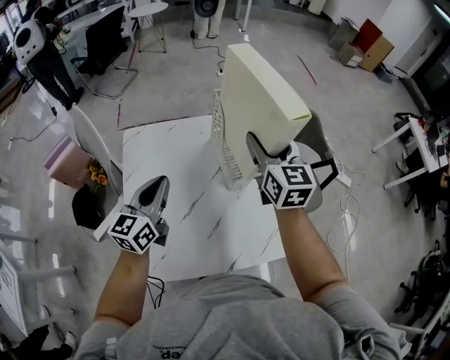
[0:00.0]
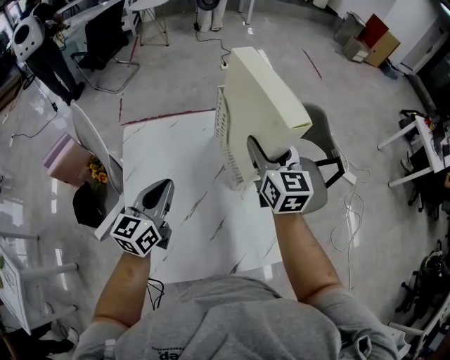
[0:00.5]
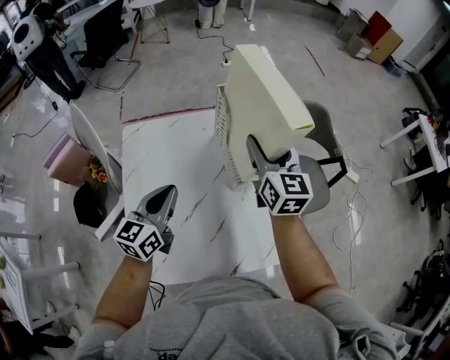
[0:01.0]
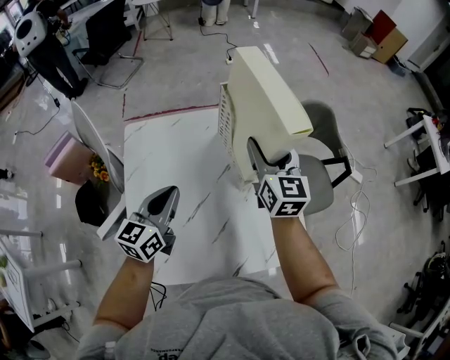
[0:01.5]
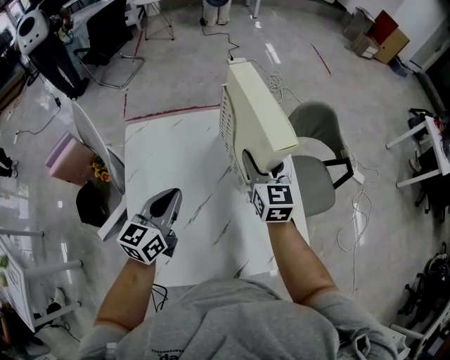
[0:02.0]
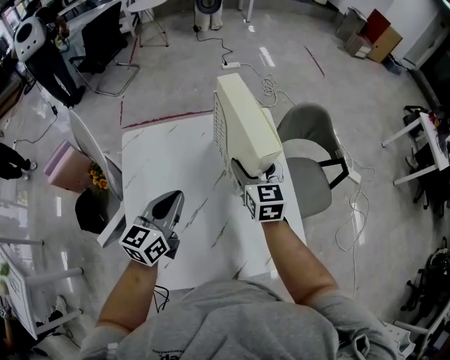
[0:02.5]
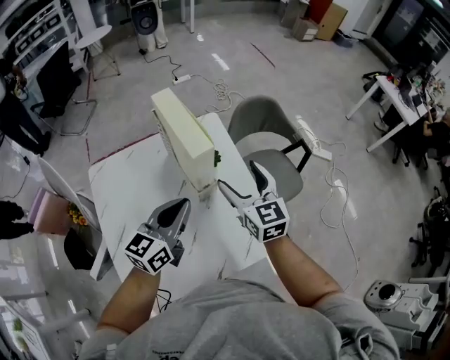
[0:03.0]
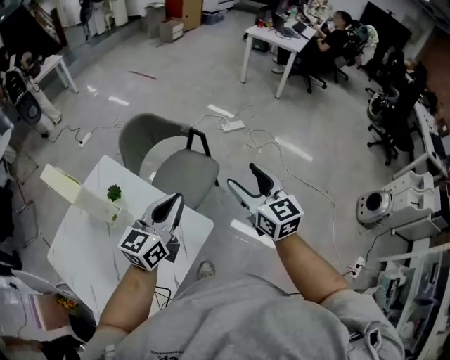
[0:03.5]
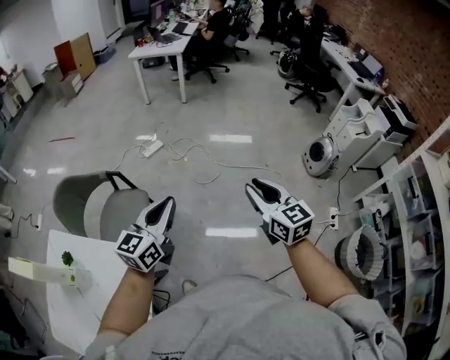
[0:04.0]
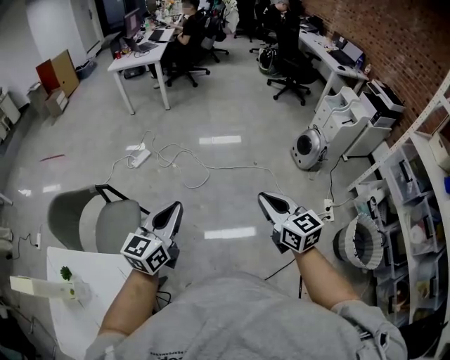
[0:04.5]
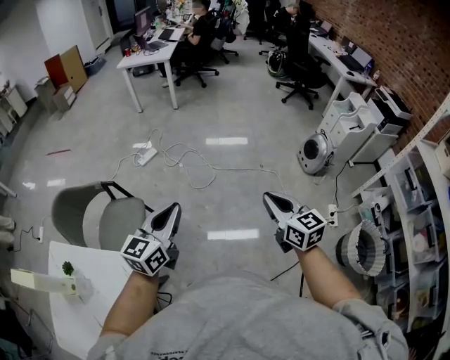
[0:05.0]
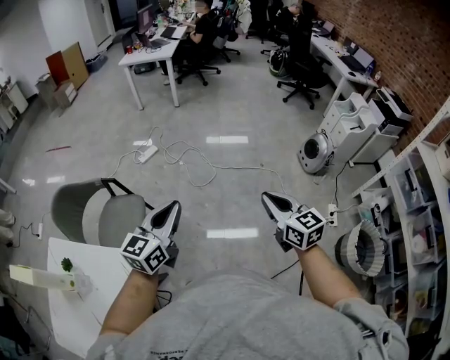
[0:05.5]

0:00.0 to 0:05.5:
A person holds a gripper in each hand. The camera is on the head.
0:00.0 to 0:02.0: The right gripper shifts about 10 cm downward. The left gripper heads downward, covering roughly 5 cm.
0:02.0 to 0:03.5: Both grippers are carried some 50 cm. The left gripper changes its angle by some 50 degrees. The right gripper changes its angle by some 30 degrees.
0:03.5 to 0:05.5: The left gripper shifts by about 40 cm, and changes its angle by some 30 degrees; the right gripper changes place by some 50 cm, changes its angle by some 30 degrees, and closes.

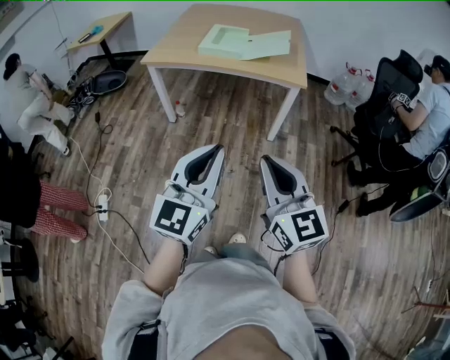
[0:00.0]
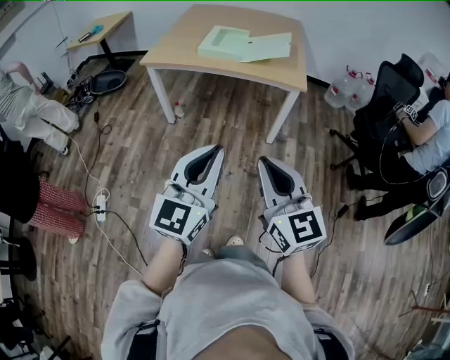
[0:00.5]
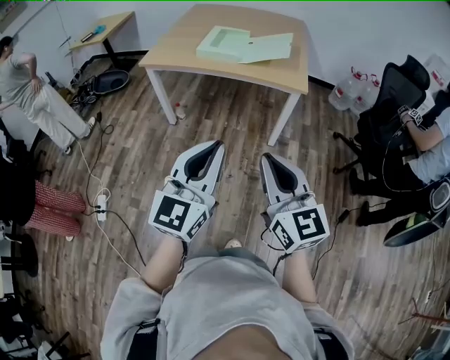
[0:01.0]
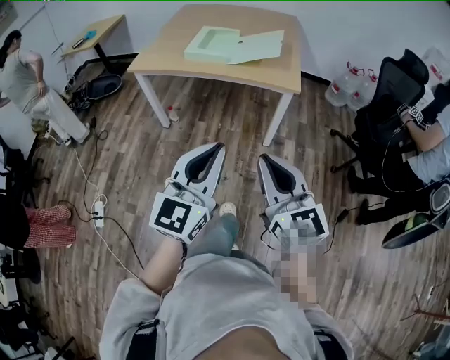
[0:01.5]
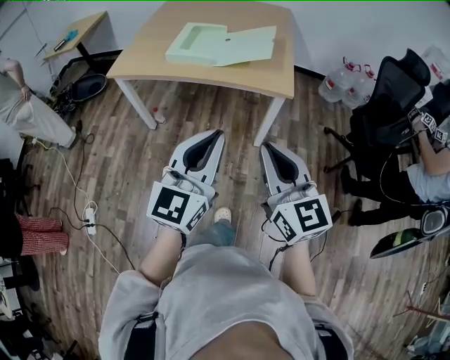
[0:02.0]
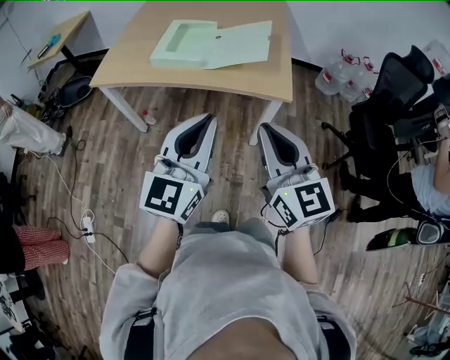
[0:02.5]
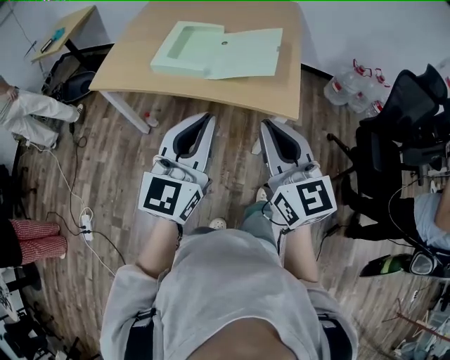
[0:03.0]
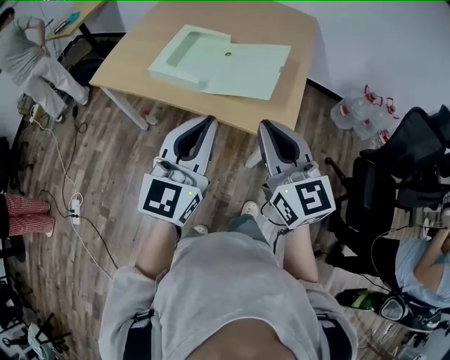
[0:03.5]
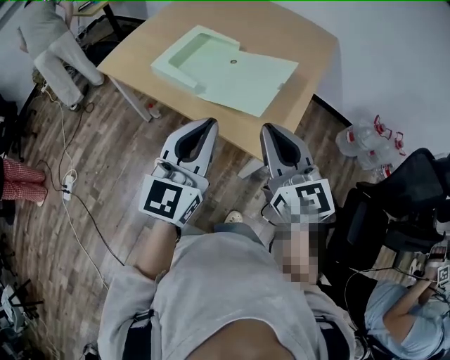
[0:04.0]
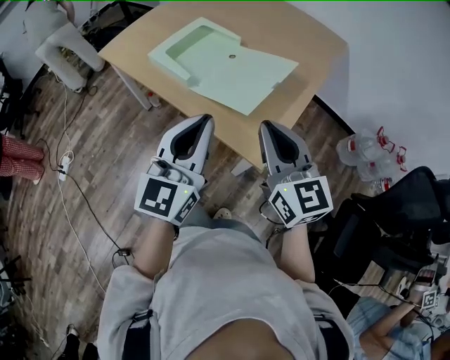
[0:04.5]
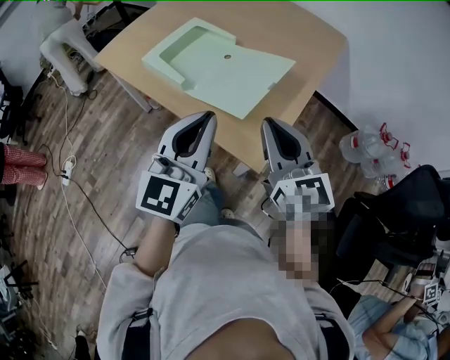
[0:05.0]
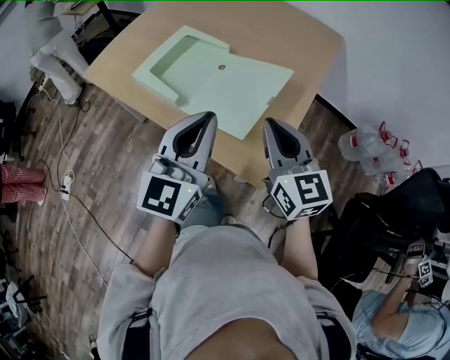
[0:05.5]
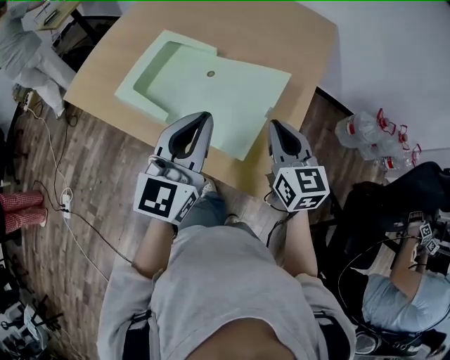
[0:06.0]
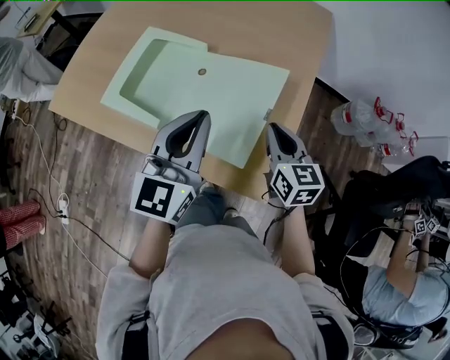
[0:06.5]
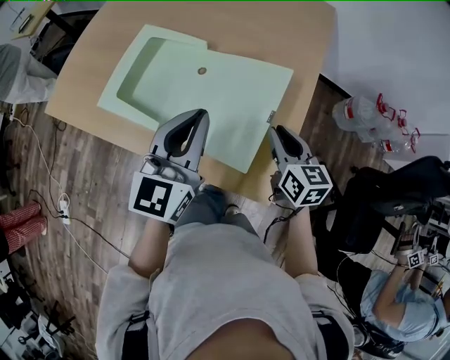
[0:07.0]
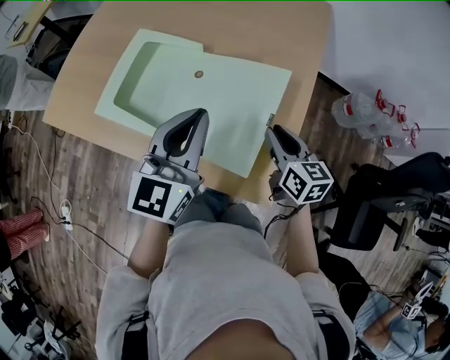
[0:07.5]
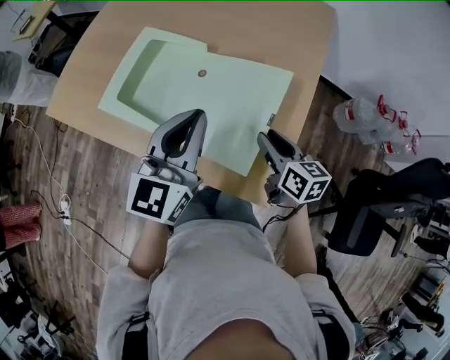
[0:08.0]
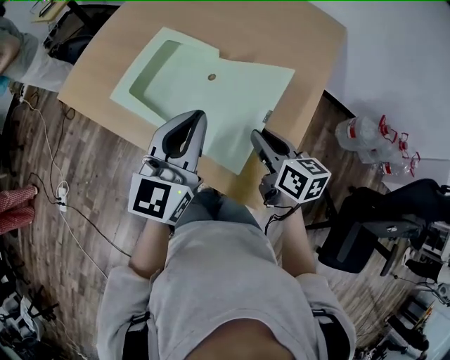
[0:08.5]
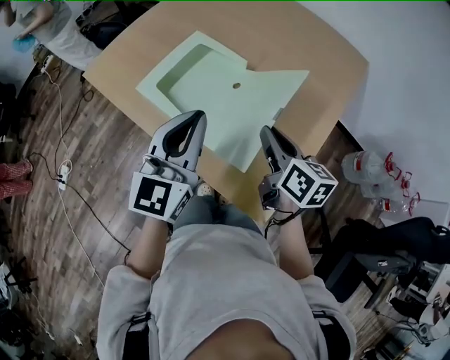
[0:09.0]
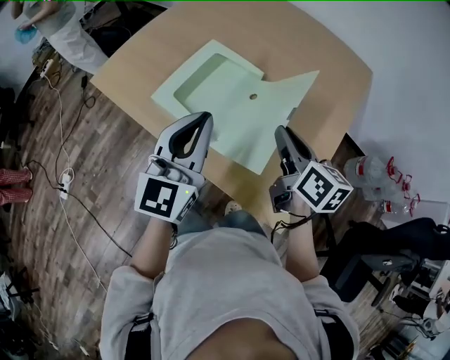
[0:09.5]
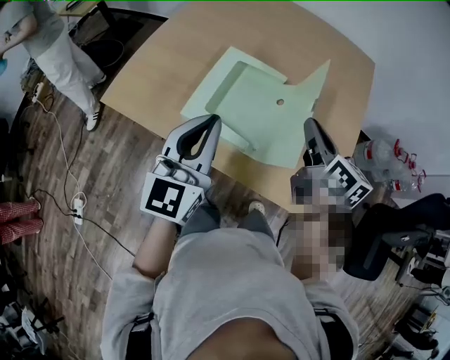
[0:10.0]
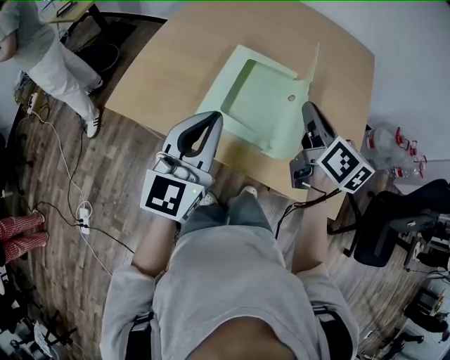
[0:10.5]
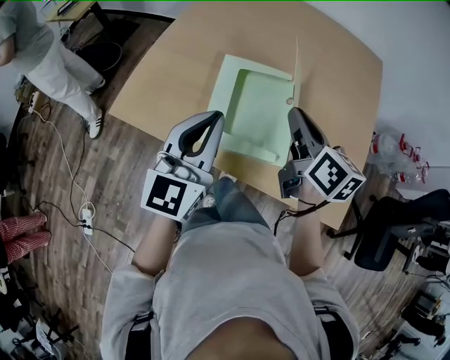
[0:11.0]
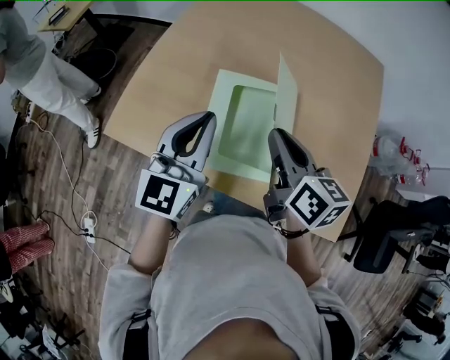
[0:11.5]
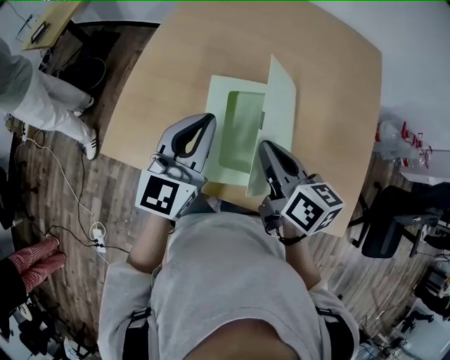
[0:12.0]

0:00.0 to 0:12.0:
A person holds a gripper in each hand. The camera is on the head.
0:00.0 to 0:02.0: The grippers both shift forward and to the right by some 25 cm.
0:02.0 to 0:04.0: The two grippers go some 35 cm forward and to the right. The right gripper swivels some 20 degrees, while the left gripper swivels about 20 degrees.
0:04.0 to 0:06.0: The left gripper travels forward by about 20 cm. The right gripper is displaced forward, downward and to the right by approximately 25 cm.
0:06.0 to 0:08.0: The right gripper goes approximately 10 cm downward, turns by roughly 30 degrees, and opens, while the left gripper heads forward, covering roughly 5 cm.
0:08.0 to 0:10.0: The left gripper shifts some 25 cm to the left. Meanwhile the right gripper goes roughly 25 cm to the left, upward and forward.
0:10.0 to 0:12.0: The right gripper travels to the left by roughly 20 cm. The left gripper goes approximately 20 cm forward and to the left.

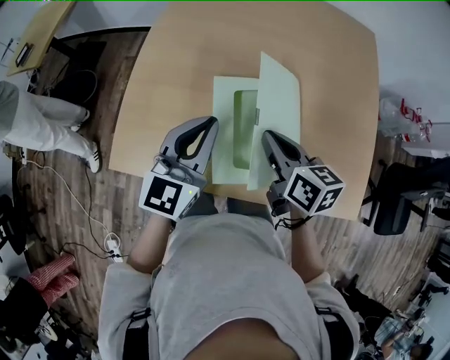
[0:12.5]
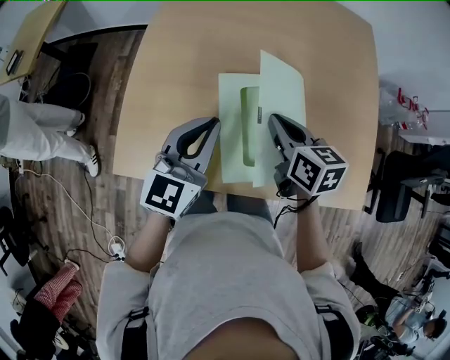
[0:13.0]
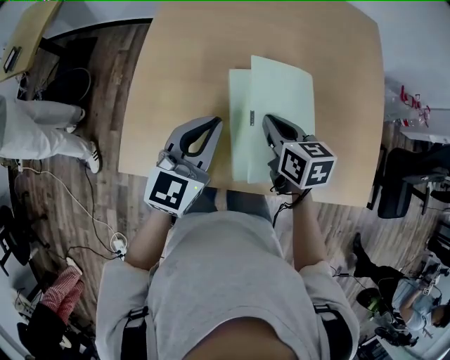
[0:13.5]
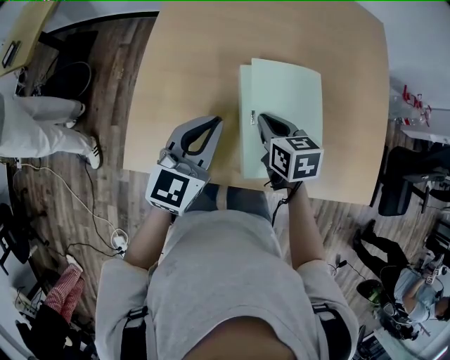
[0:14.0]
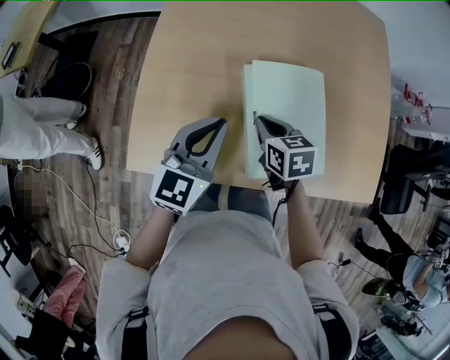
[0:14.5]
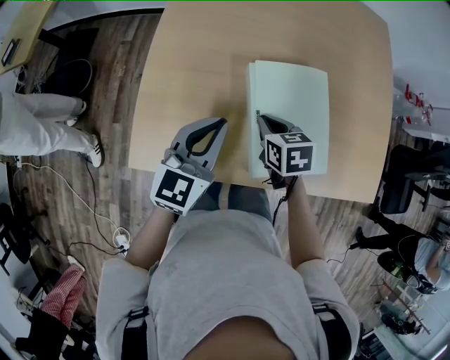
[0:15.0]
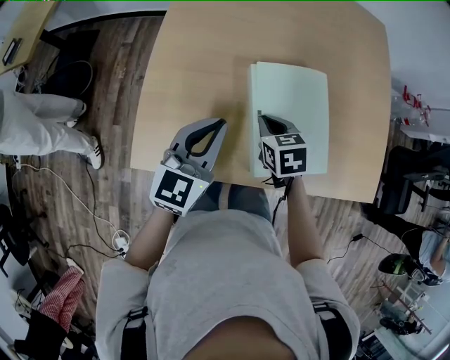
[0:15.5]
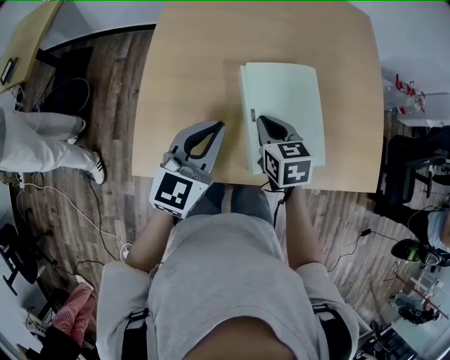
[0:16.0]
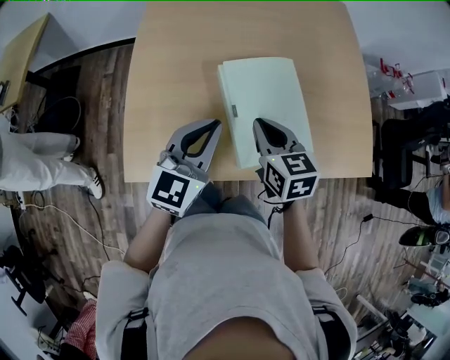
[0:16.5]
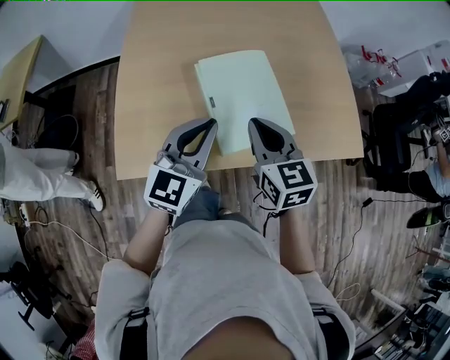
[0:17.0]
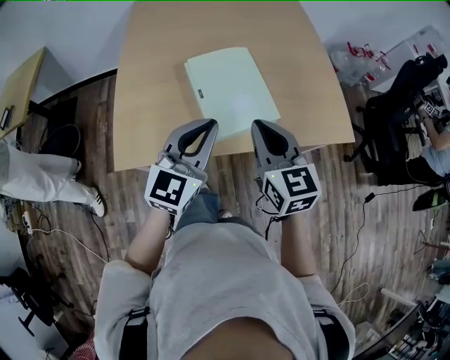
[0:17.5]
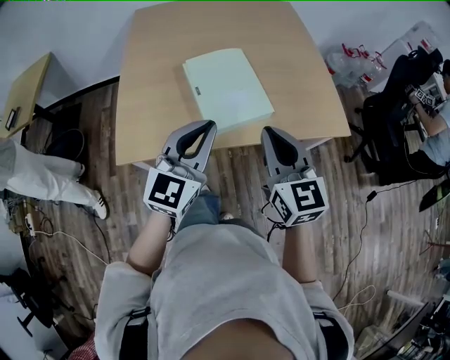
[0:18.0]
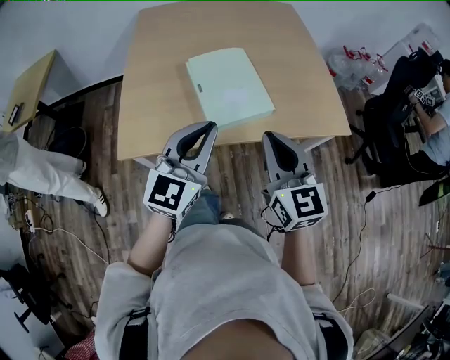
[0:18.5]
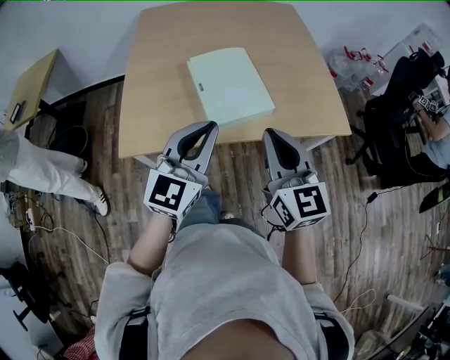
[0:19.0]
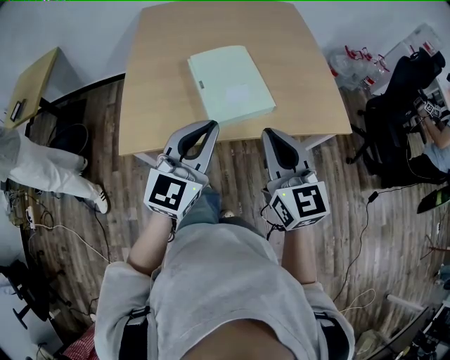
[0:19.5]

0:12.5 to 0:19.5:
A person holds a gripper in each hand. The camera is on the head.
0:12.5 to 0:14.5: The left gripper moves to the left and downward, approximately 10 cm, while the right gripper shifts roughly 15 cm downward and to the left, and swivels approximately 20 degrees.
0:14.5 to 0:16.0: The grippers move only a little.
0:16.0 to 0:17.5: The right gripper goes roughly 25 cm backward, upward and to the right, and turns by some 30 degrees. The left gripper goes roughly 20 cm to the right, backward and upward.
0:17.5 to 0:19.5: Both grippers travel together backward, approximately 10 cm.

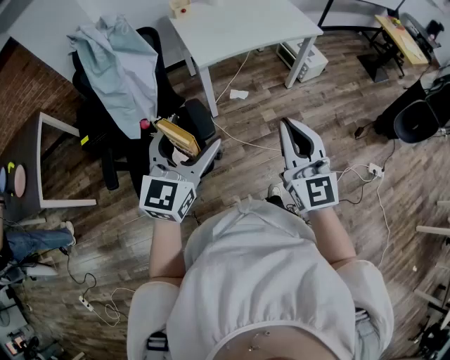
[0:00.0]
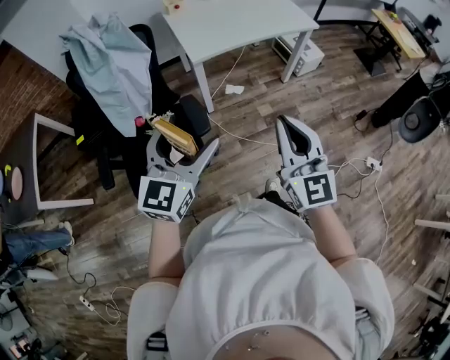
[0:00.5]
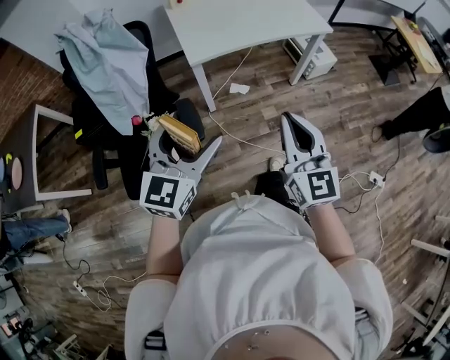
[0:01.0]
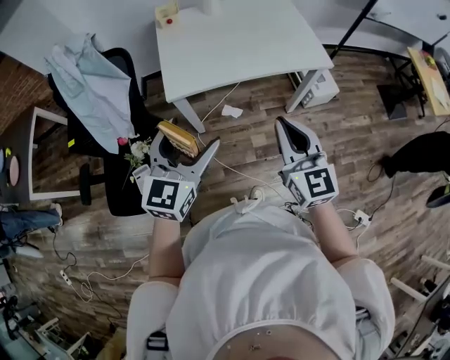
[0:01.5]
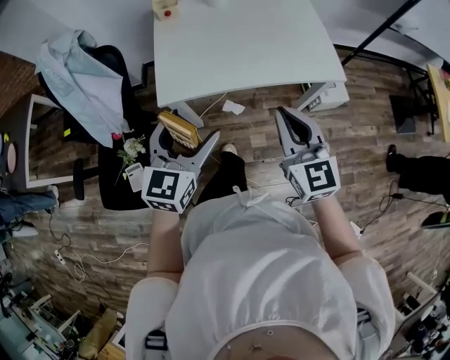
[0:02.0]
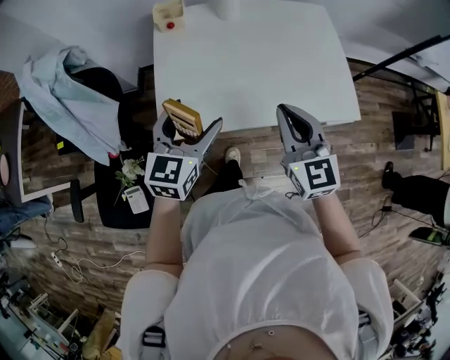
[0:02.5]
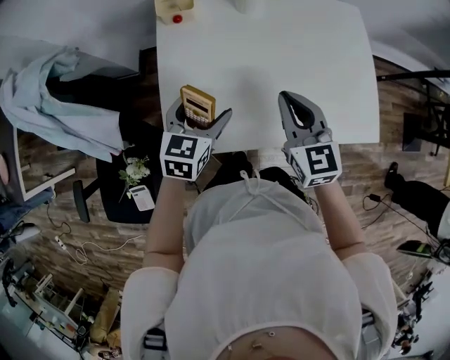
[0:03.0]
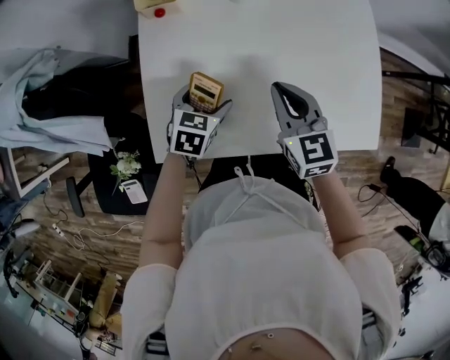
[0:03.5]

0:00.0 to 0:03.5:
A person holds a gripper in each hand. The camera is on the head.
0:00.0 to 0:02.0: The two grippers travel together, forward and to the right, roughly 50 cm. The right gripper turns by some 20 degrees; the left gripper rotates some 20 degrees.
0:02.0 to 0:03.5: The two grippers go some 40 cm forward and downward. The right gripper swivels approximately 20 degrees, while the left gripper angles its fingers downward, by roughly 40 degrees.
